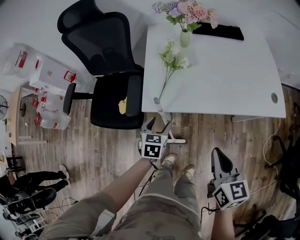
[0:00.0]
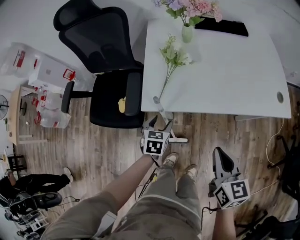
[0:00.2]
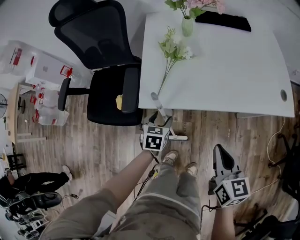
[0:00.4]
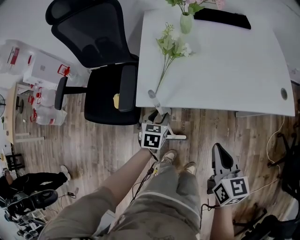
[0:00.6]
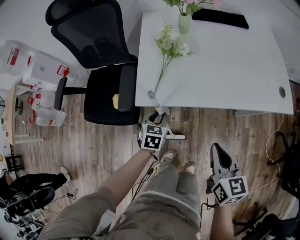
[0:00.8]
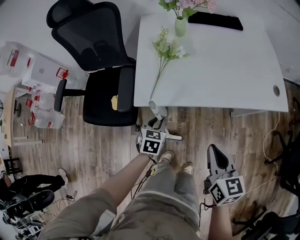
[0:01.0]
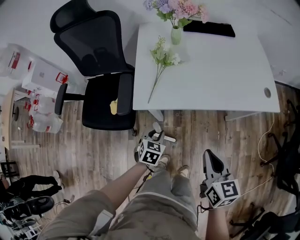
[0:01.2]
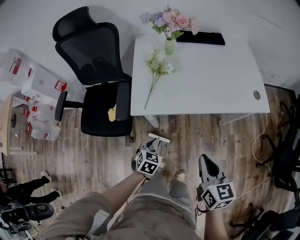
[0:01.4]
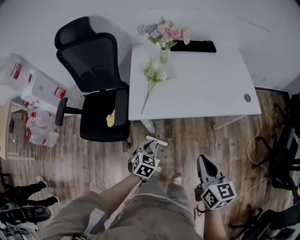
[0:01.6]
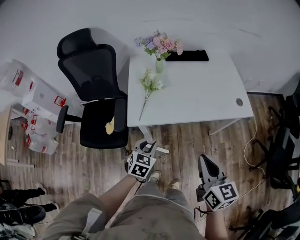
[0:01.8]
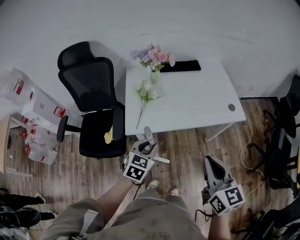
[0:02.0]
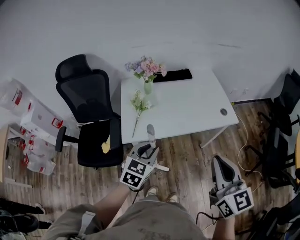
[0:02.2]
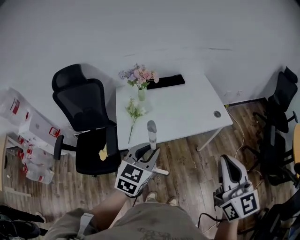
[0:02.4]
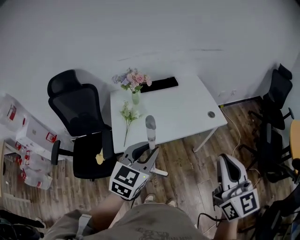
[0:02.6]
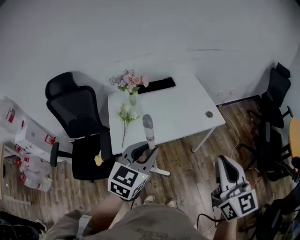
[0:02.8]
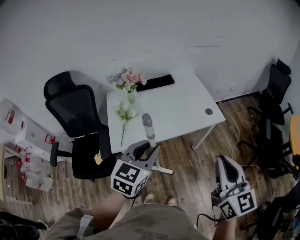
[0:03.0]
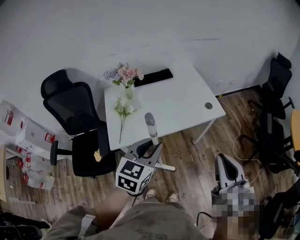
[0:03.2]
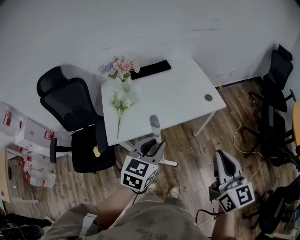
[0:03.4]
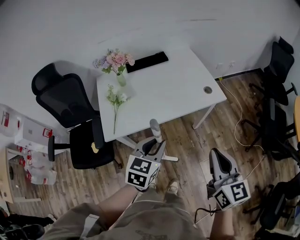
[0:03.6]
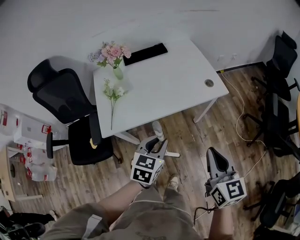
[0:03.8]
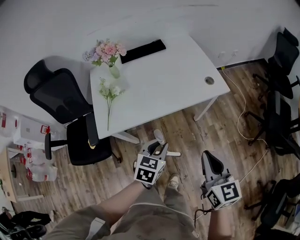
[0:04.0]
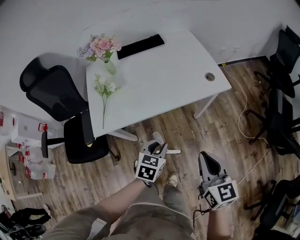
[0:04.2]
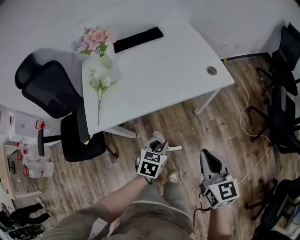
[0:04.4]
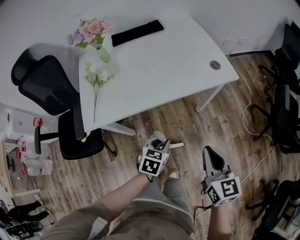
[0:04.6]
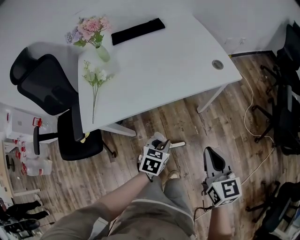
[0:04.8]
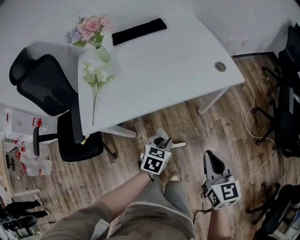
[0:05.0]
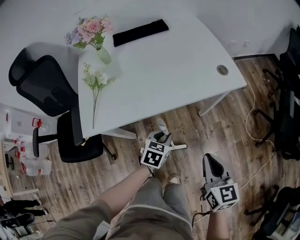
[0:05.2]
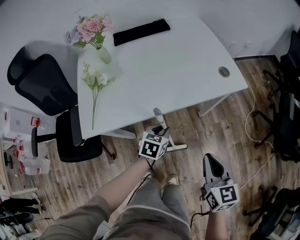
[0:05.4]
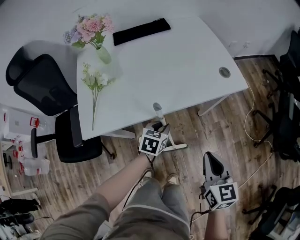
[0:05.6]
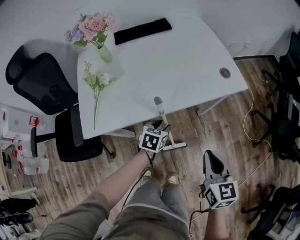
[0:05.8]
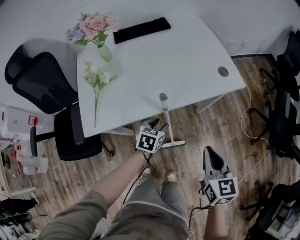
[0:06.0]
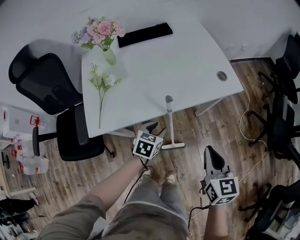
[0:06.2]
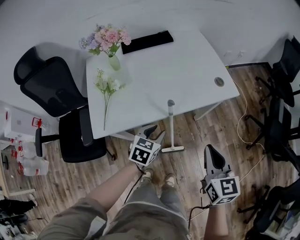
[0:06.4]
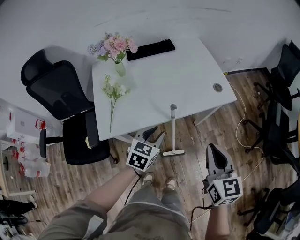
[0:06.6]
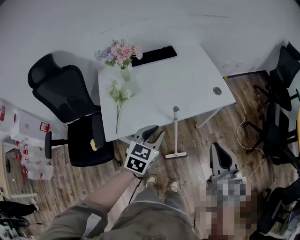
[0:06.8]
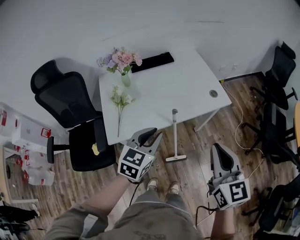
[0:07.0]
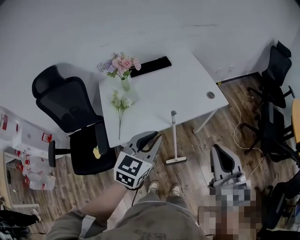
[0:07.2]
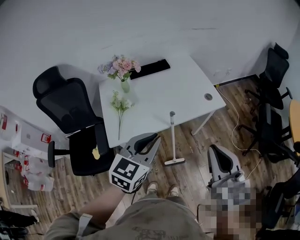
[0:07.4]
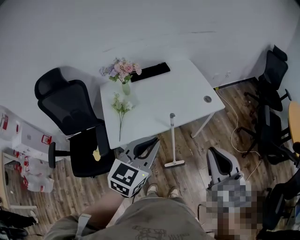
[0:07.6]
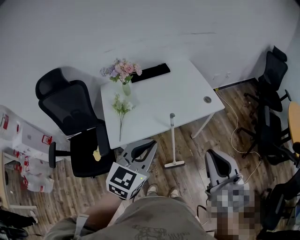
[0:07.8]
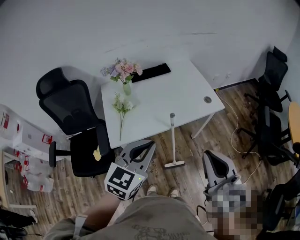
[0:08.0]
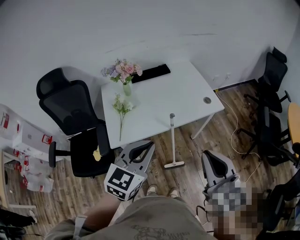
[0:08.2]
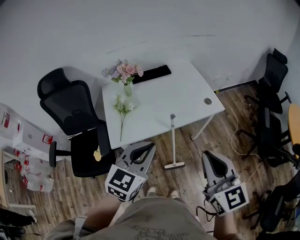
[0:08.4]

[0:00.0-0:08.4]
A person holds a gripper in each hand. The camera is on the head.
0:00.0 to 0:01.4: The left gripper is displaced backward by approximately 10 cm, changes its angle by about 20 degrees, and closes its fingers. The right gripper is displaced backward by approximately 5 cm, and moves approximately 10 cm downward and comes back.
0:01.4 to 0:02.8: The left gripper moves upward, roughly 40 cm, and tips its fingers upward by roughly 30 degrees. Meanwhile the right gripper shifts some 30 cm upward and to the right, and turns by approximately 30 degrees.
0:02.8 to 0:04.2: The grippers both shift downward by about 25 cm. The left gripper turns by some 30 degrees.
0:04.2 to 0:05.6: Both grippers travel together downward and forward, roughly 15 cm.
0:05.6 to 0:07.0: The two grippers go about 30 cm upward. The left gripper changes its angle by approximately 30 degrees.
0:07.0 to 0:08.4: The right gripper moves backward and upward, some 10 cm. Meanwhile the left gripper shifts some 15 cm upward and backward.

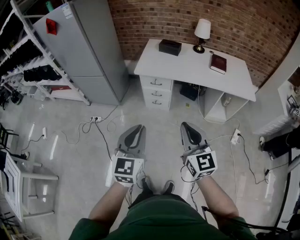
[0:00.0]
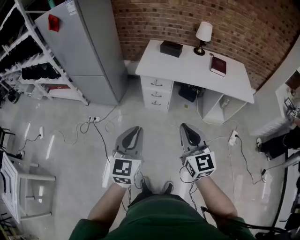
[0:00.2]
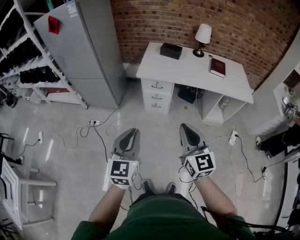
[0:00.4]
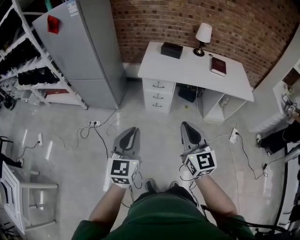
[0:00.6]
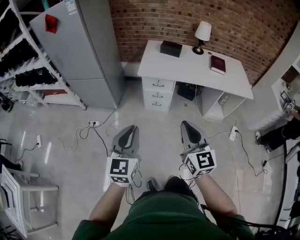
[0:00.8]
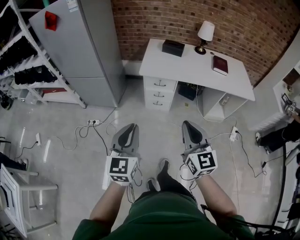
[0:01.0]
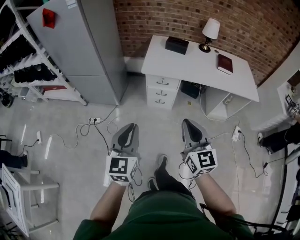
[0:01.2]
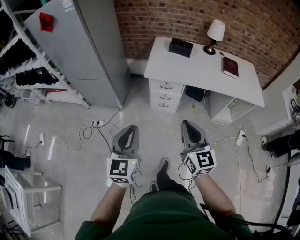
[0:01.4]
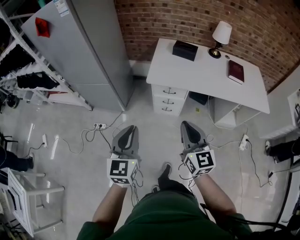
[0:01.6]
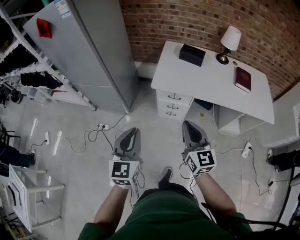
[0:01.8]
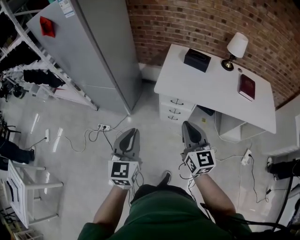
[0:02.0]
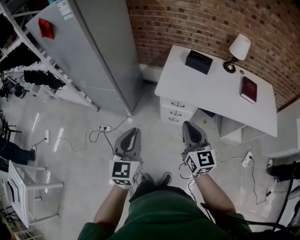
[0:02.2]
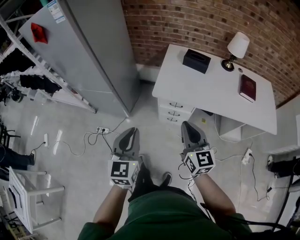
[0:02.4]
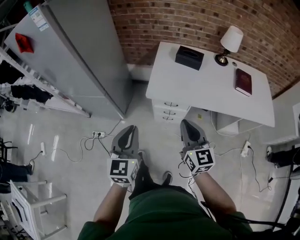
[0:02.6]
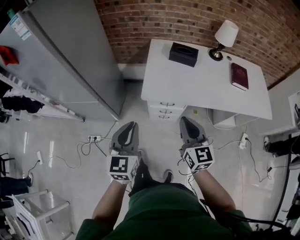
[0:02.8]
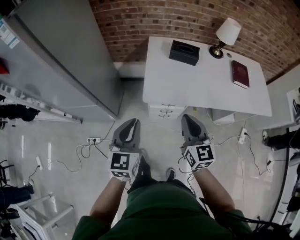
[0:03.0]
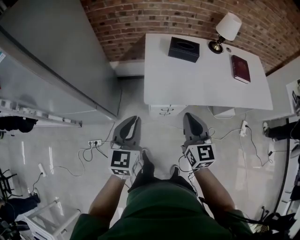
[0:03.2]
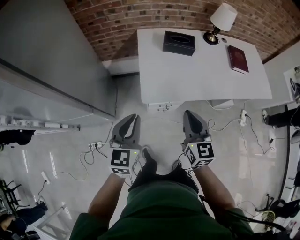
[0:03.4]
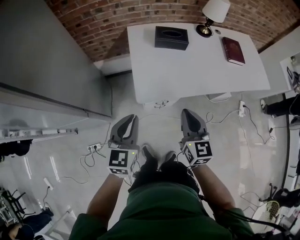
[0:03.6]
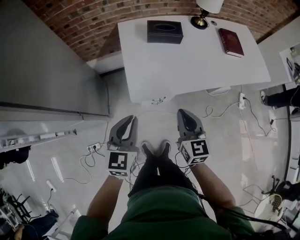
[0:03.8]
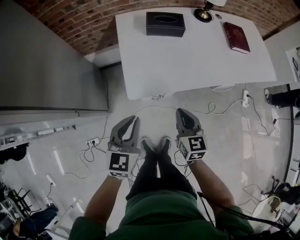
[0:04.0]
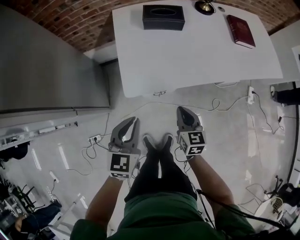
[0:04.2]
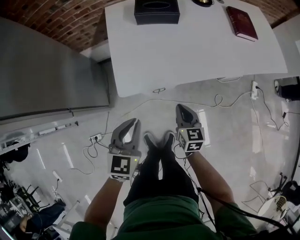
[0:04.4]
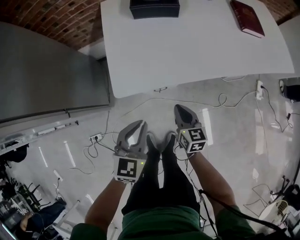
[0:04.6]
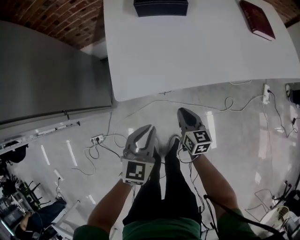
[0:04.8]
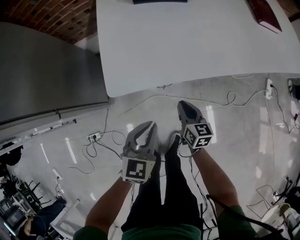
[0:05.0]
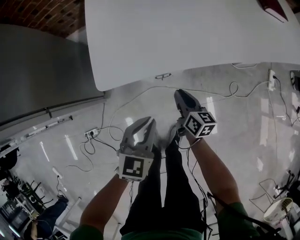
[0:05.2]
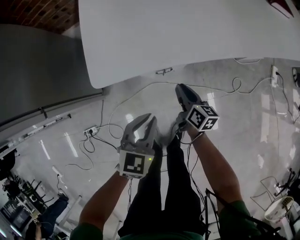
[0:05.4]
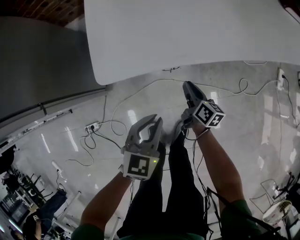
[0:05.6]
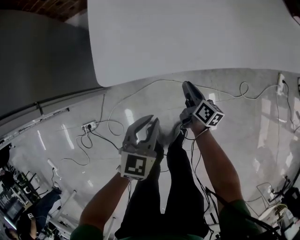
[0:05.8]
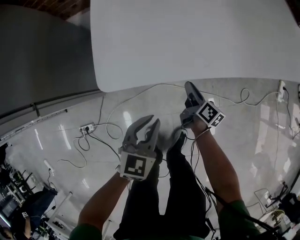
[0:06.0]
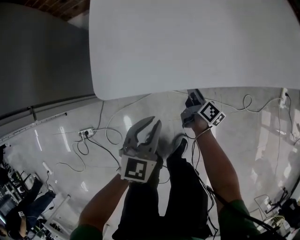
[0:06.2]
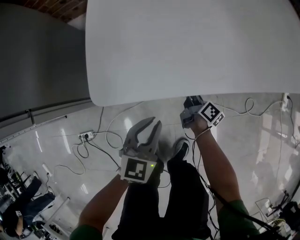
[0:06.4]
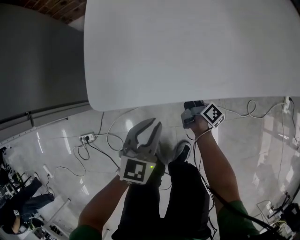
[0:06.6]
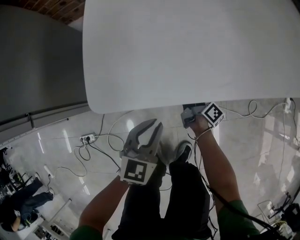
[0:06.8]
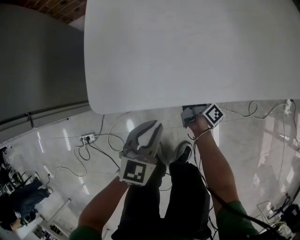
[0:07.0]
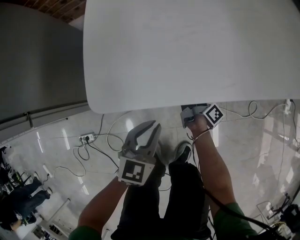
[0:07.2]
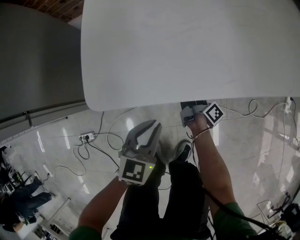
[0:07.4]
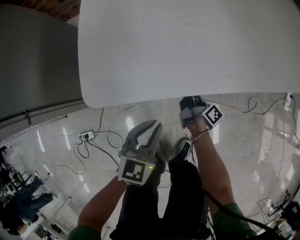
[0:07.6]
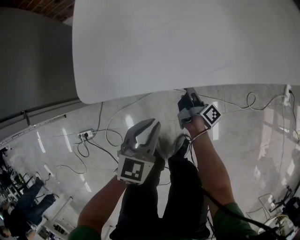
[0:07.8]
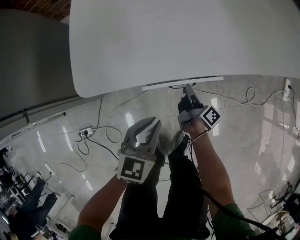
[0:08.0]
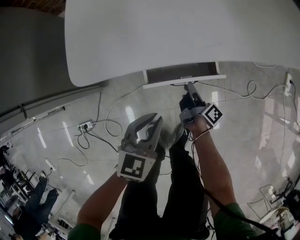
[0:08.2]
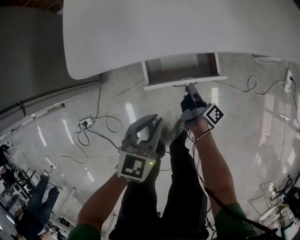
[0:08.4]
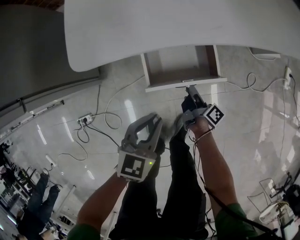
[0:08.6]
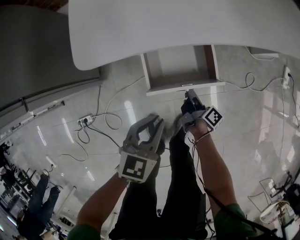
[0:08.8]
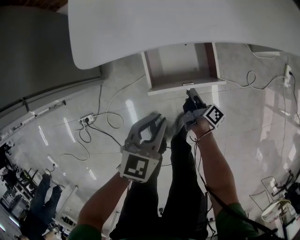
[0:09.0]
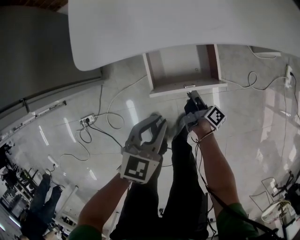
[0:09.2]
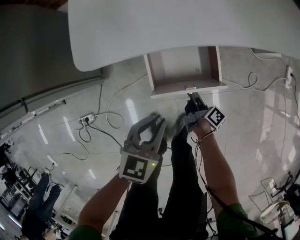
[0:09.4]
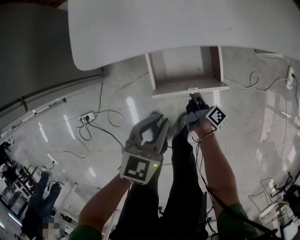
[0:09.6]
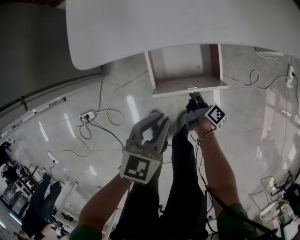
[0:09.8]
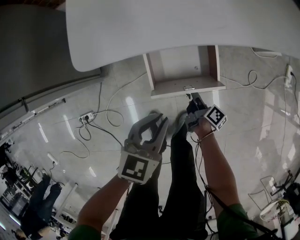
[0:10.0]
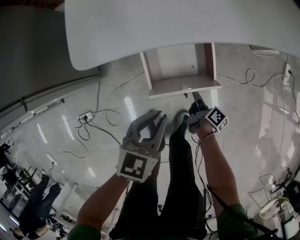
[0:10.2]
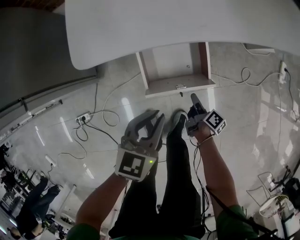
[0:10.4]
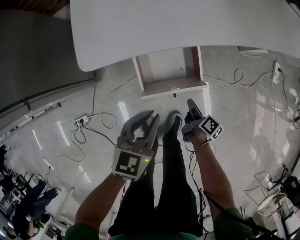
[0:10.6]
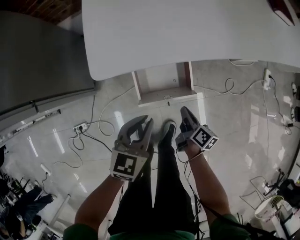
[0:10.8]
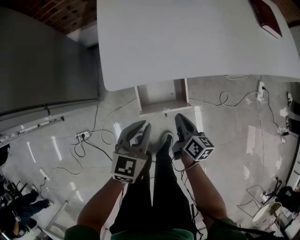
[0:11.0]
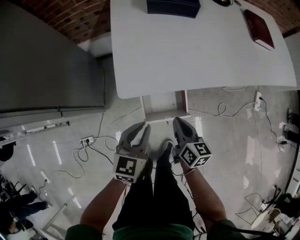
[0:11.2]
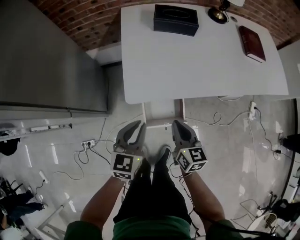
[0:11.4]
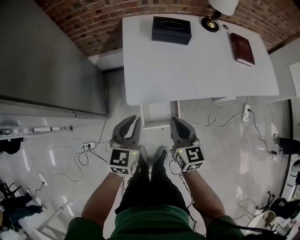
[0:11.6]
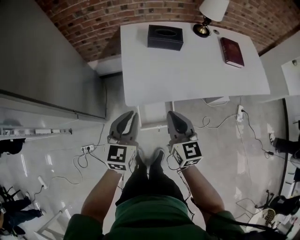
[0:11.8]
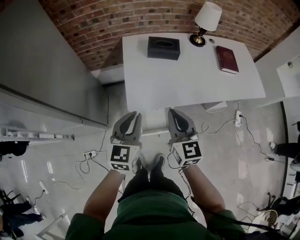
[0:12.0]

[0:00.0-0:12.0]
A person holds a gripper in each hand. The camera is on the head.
0:00.0 to 0:01.6: Both grippers move forward and to the left, some 25 cm.
0:01.6 to 0:03.0: The two grippers go about 25 cm forward.
0:03.0 to 0:04.4: The right gripper is displaced downward by some 30 cm, and turns by roughly 30 degrees. Meanwhile the left gripper moves downward, forward and to the right, some 20 cm, and turns by approximately 30 degrees.
0:04.4 to 0:06.0: The two grippers go about 30 cm downward. The right gripper rolls clockwise, seen from behind, by some 50 degrees.
0:06.0 to 0:07.6: The left gripper moves approximately 5 cm, while the right gripper is displaced downward by approximately 5 cm, and turns by roughly 30 degrees.
0:07.6 to 0:09.0: The right gripper is displaced backward by roughly 15 cm; the left gripper shifts about 5 cm backward.
0:09.0 to 0:10.4: The right gripper shifts by approximately 5 cm.
0:10.4 to 0:12.0: The left gripper moves upward, some 40 cm, and changes its angle by roughly 30 degrees; the right gripper travels upward by about 70 cm, and twists roughly 80 degrees counterclockwise, seen from behind.

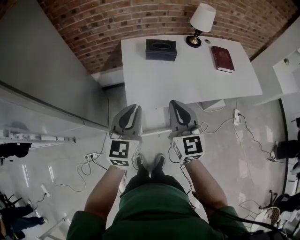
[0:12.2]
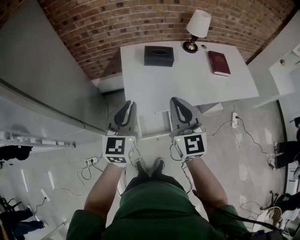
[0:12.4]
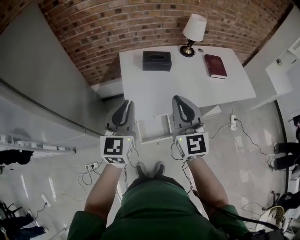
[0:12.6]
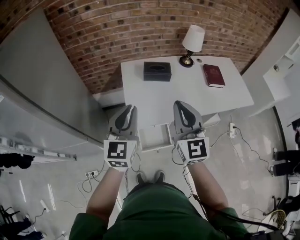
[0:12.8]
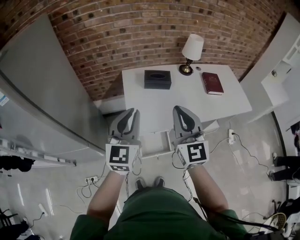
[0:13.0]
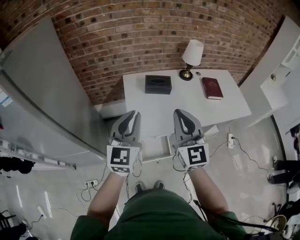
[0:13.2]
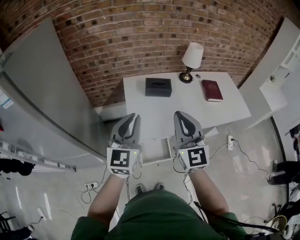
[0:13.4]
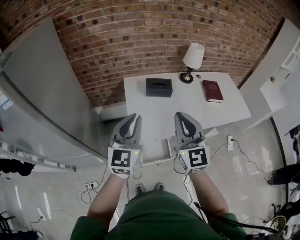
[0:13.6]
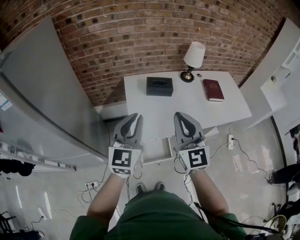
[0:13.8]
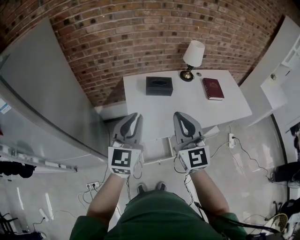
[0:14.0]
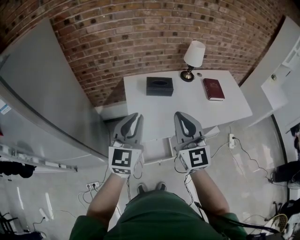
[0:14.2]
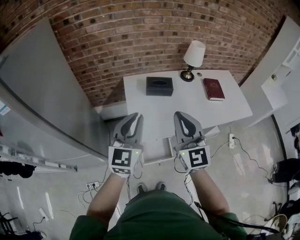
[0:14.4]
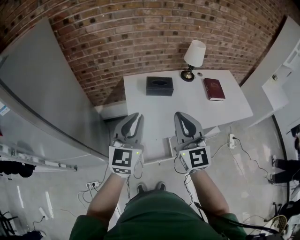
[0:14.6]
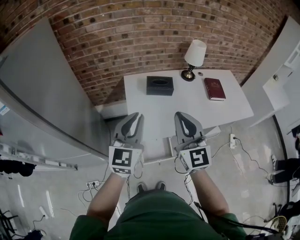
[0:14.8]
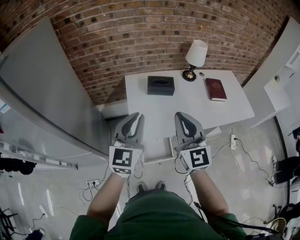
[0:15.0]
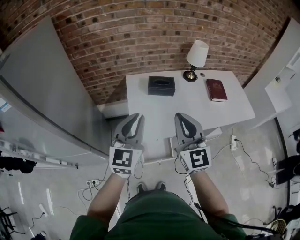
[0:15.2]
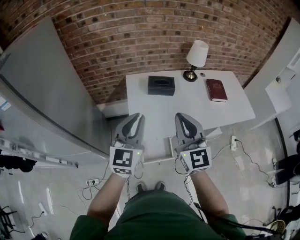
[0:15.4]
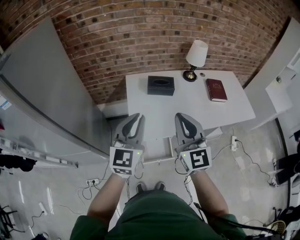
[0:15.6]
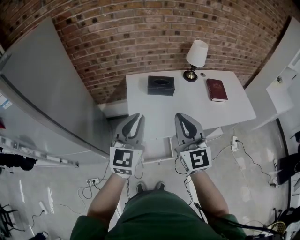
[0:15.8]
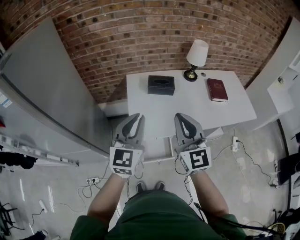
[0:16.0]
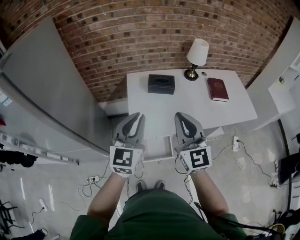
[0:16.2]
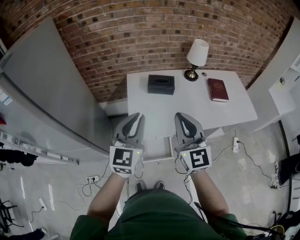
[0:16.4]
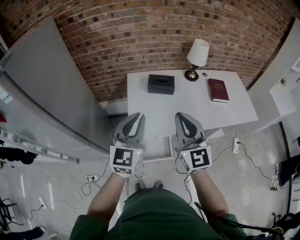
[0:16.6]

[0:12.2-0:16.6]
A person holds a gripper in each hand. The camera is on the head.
0:12.2 to 0:13.6: Both grippers move upward, approximately 15 cm.
0:13.6 to 0:16.6: The grippers stay close to where they were, moving slightly.
